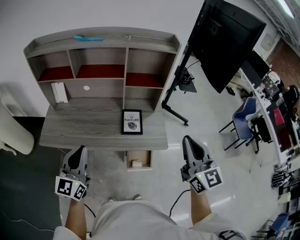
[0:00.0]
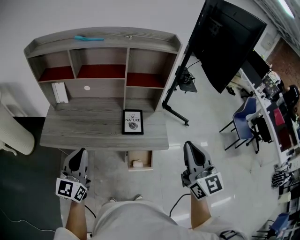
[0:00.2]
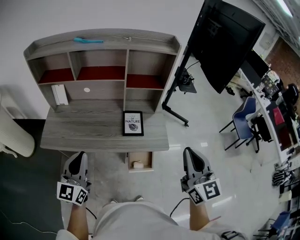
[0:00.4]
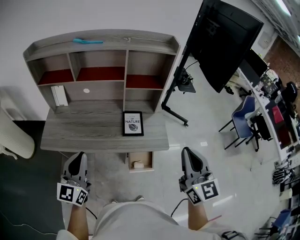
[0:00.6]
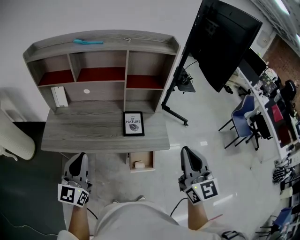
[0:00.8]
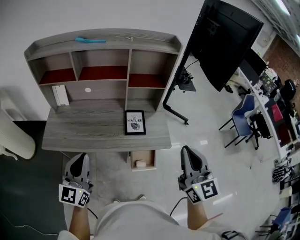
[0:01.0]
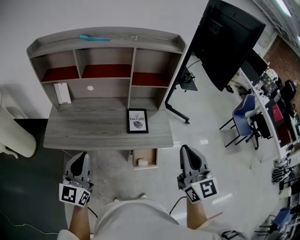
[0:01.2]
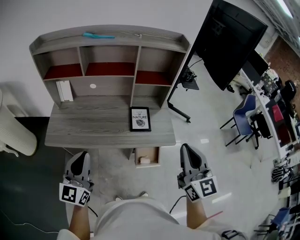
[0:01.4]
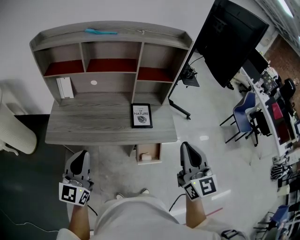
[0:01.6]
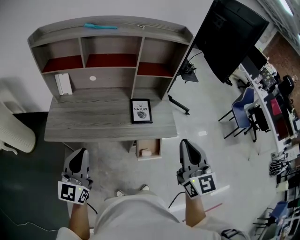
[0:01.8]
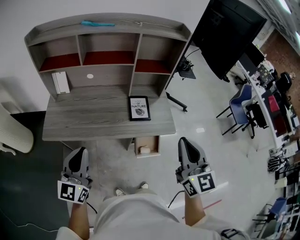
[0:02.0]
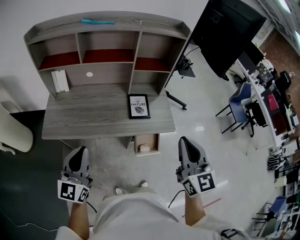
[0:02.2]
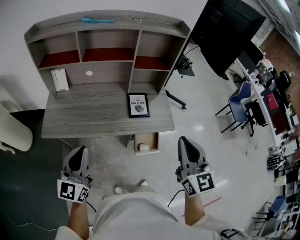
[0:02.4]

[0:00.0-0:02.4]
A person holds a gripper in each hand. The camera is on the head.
0:00.0 to 0:01.2: The left gripper ends up some 5 cm from where it was. The right gripper heads to the left, covering roughly 5 cm.
0:01.2 to 0:02.4: The left gripper changes place by about 5 cm; the right gripper heads to the left, covering approximately 5 cm.

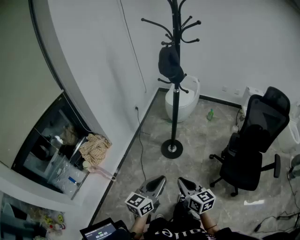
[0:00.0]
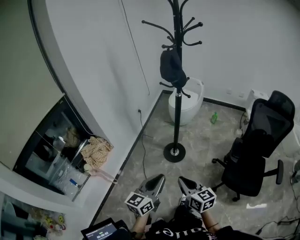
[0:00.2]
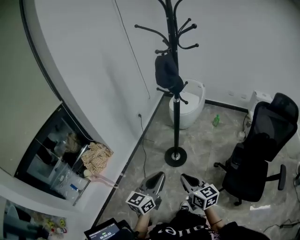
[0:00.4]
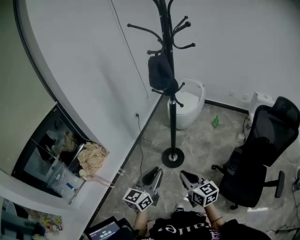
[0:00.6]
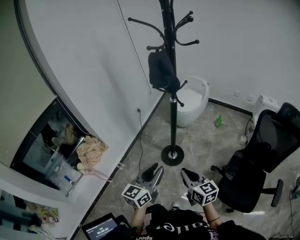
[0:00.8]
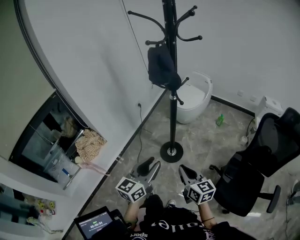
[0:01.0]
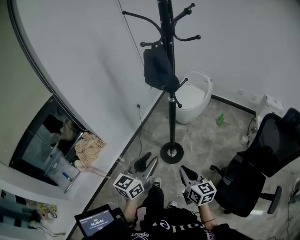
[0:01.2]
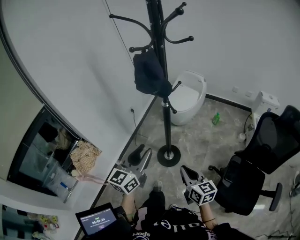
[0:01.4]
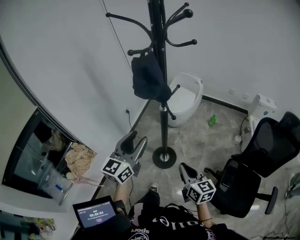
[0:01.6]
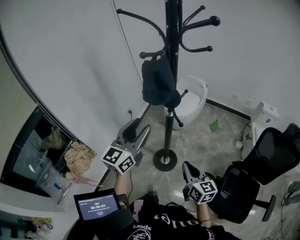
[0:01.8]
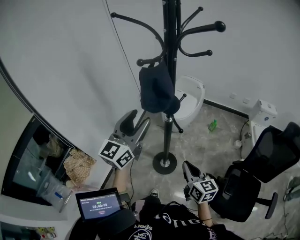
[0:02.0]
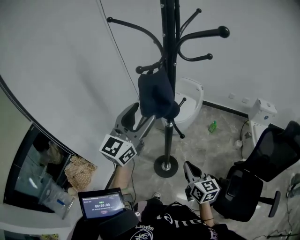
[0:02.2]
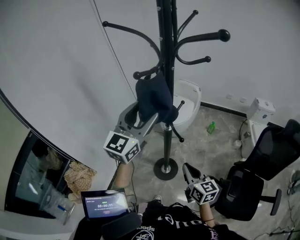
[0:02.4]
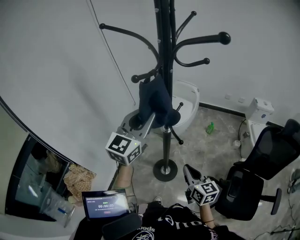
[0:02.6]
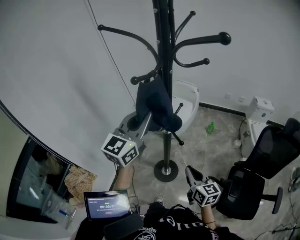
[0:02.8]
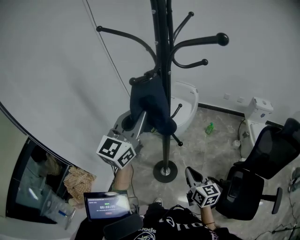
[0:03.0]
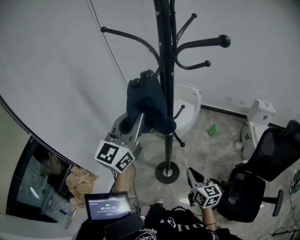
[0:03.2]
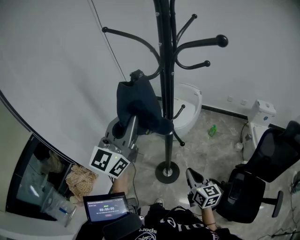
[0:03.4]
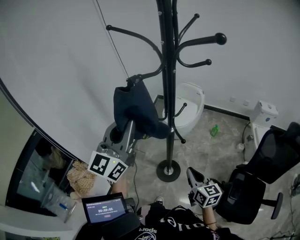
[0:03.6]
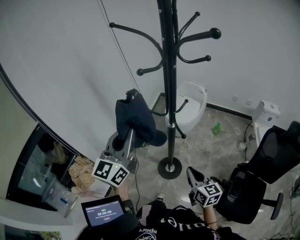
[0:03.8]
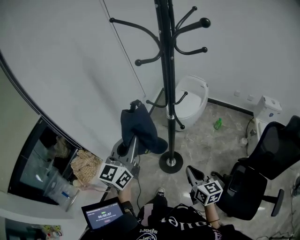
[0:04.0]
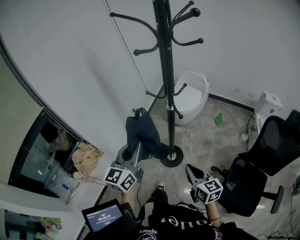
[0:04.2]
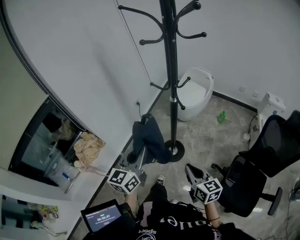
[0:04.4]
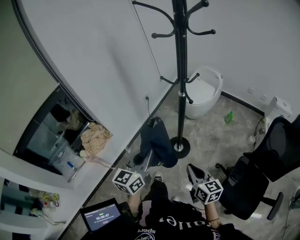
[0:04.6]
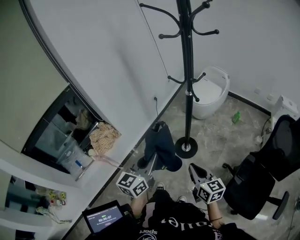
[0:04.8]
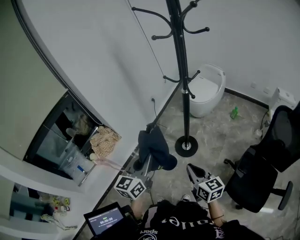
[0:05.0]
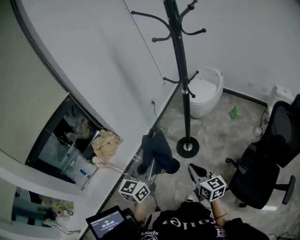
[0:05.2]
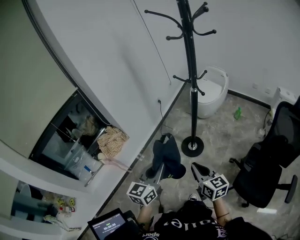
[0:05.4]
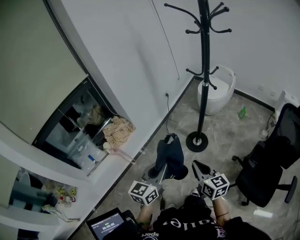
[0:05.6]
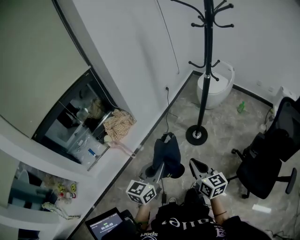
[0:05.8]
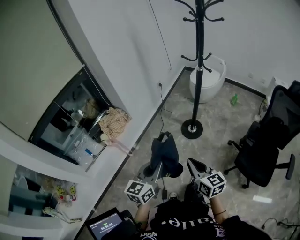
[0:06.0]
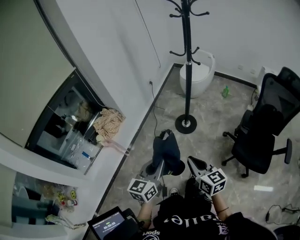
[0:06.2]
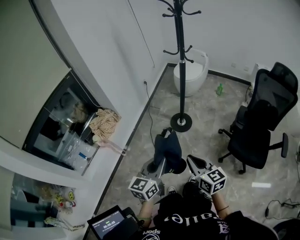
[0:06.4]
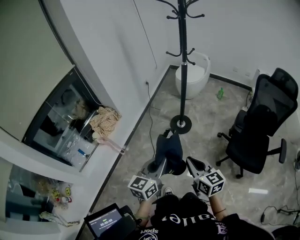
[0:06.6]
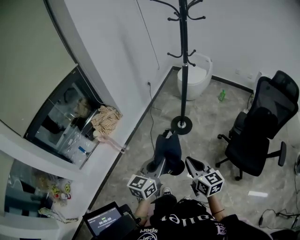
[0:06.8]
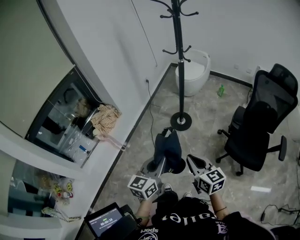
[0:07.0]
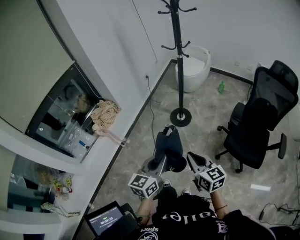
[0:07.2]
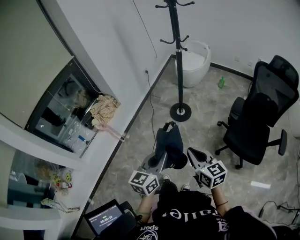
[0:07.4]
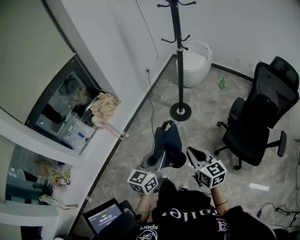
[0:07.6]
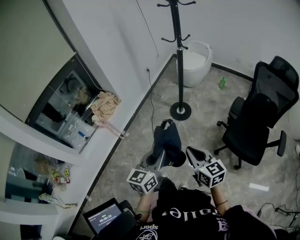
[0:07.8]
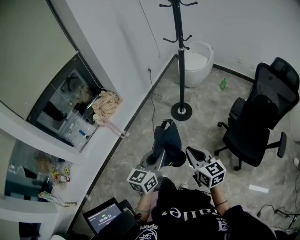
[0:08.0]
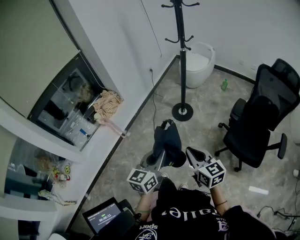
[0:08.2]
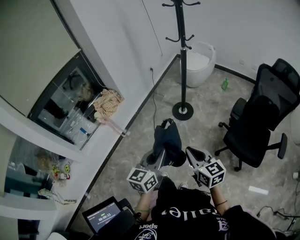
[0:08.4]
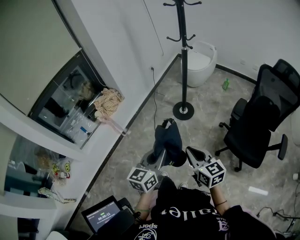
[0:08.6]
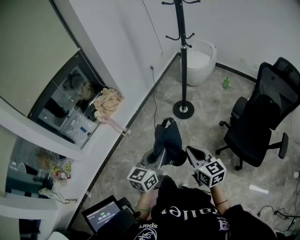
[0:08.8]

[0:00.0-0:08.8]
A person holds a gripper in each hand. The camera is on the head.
0:00.0 to 0:01.4: The left gripper heads forward, covering approximately 30 cm, and opens; the right gripper travels forward and to the right by roughly 30 cm.
0:01.4 to 0:03.0: The left gripper moves forward and upward, some 30 cm, changes its angle by approximately 20 degrees, and closes; the right gripper travels forward by some 15 cm.
0:03.0 to 0:04.4: The left gripper shifts approximately 30 cm backward and downward, and turns by roughly 30 degrees. Meanwhile the right gripper shifts some 15 cm backward.
0:04.4 to 0:05.8: The right gripper travels to the left and backward by roughly 30 cm, while the left gripper moves backward and to the left, about 30 cm.
0:05.8 to 0:07.4: Both grippers travel together backward and to the right, roughly 20 cm.
0:07.4 to 0:08.8: There are only small adjustments of the grippers.

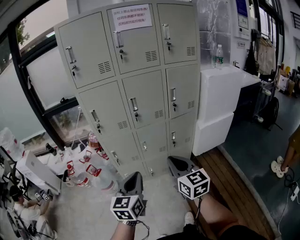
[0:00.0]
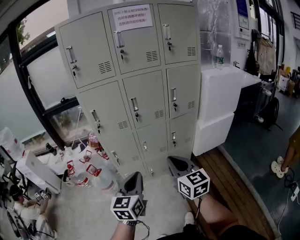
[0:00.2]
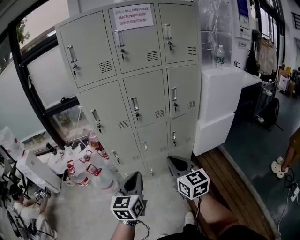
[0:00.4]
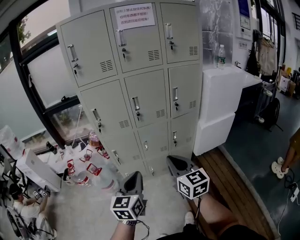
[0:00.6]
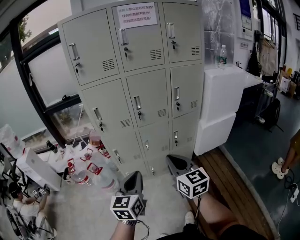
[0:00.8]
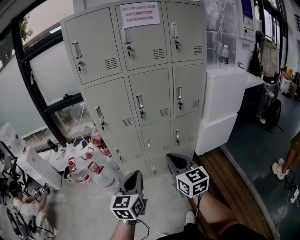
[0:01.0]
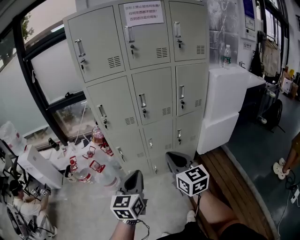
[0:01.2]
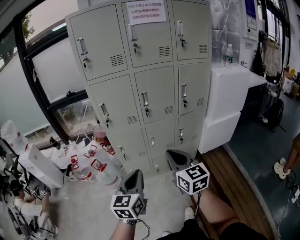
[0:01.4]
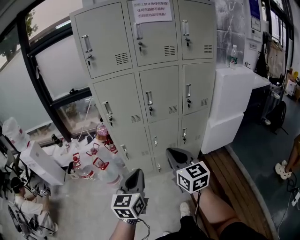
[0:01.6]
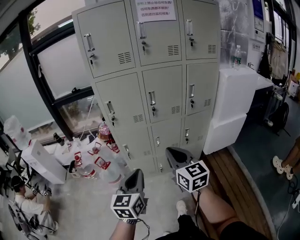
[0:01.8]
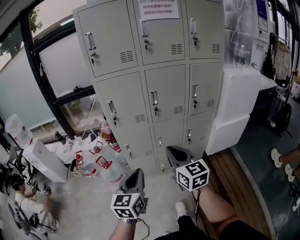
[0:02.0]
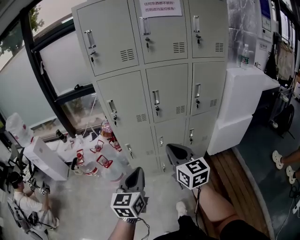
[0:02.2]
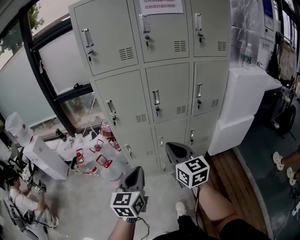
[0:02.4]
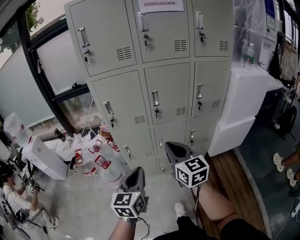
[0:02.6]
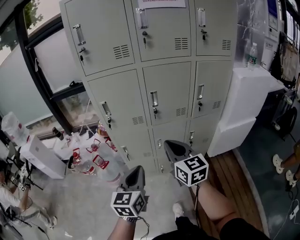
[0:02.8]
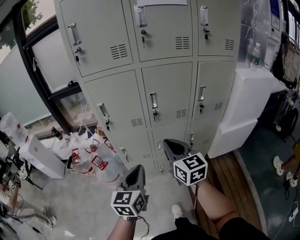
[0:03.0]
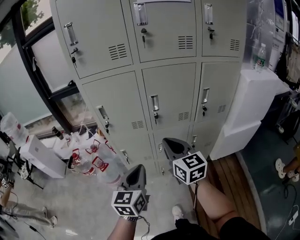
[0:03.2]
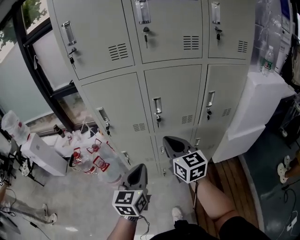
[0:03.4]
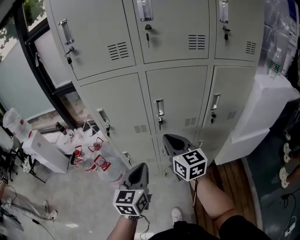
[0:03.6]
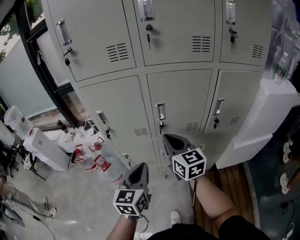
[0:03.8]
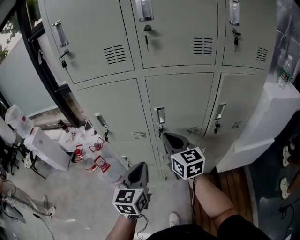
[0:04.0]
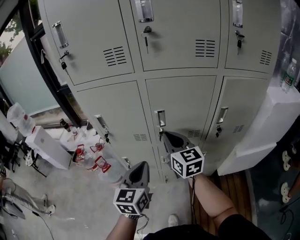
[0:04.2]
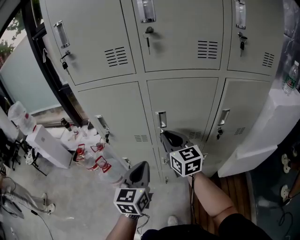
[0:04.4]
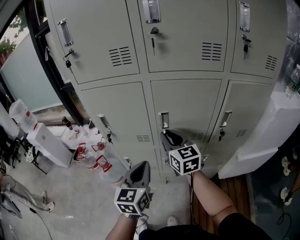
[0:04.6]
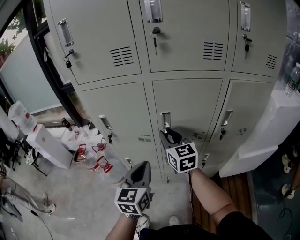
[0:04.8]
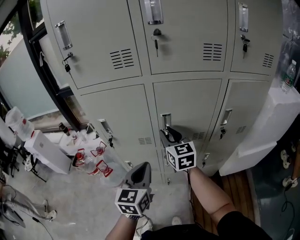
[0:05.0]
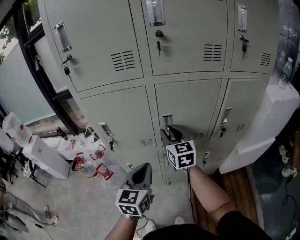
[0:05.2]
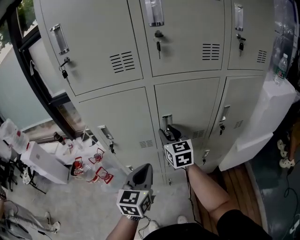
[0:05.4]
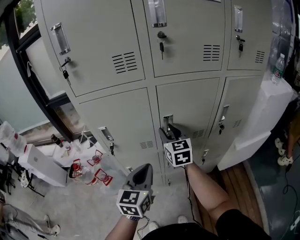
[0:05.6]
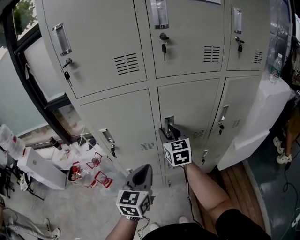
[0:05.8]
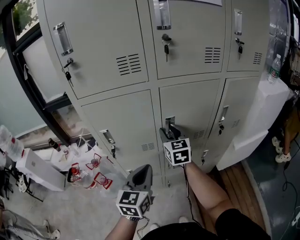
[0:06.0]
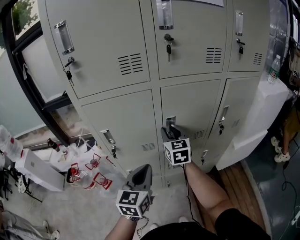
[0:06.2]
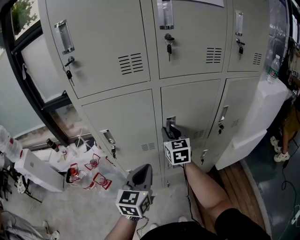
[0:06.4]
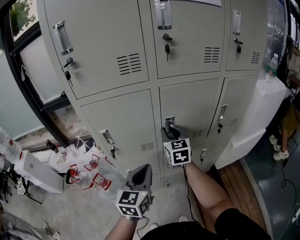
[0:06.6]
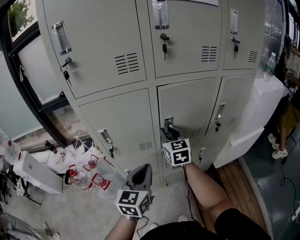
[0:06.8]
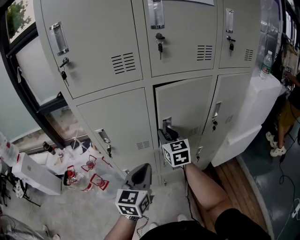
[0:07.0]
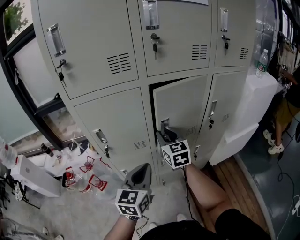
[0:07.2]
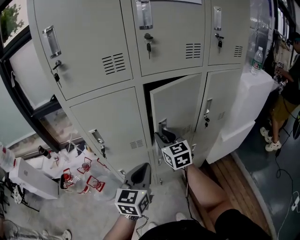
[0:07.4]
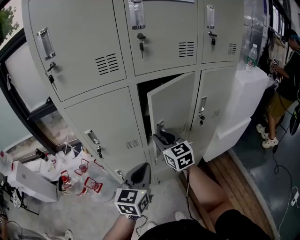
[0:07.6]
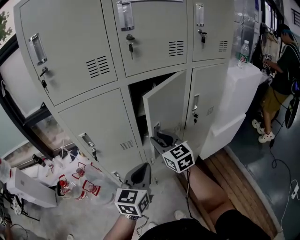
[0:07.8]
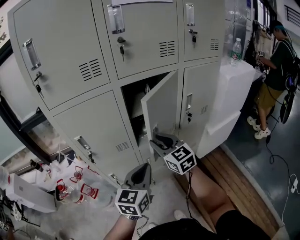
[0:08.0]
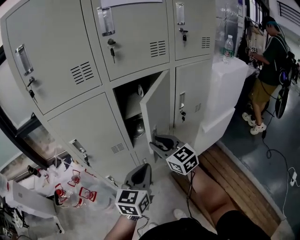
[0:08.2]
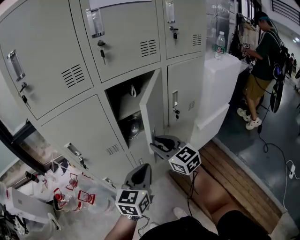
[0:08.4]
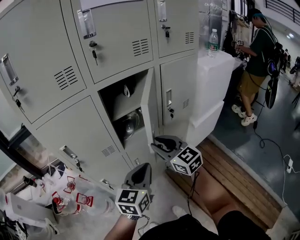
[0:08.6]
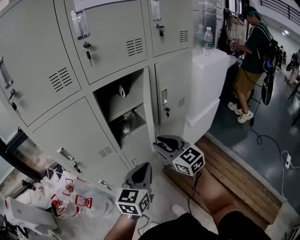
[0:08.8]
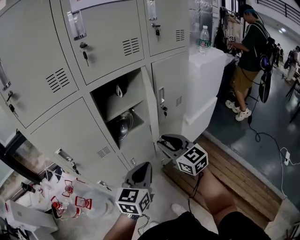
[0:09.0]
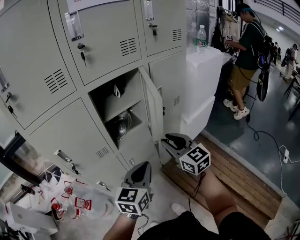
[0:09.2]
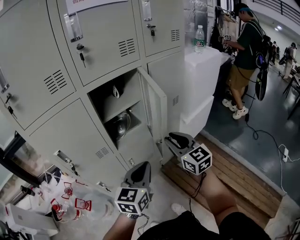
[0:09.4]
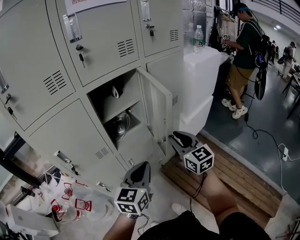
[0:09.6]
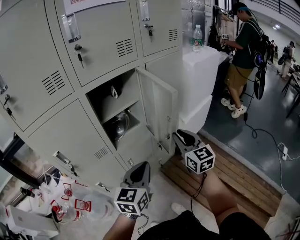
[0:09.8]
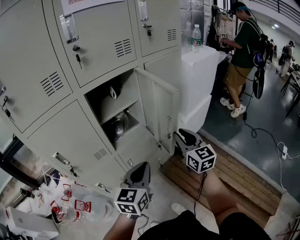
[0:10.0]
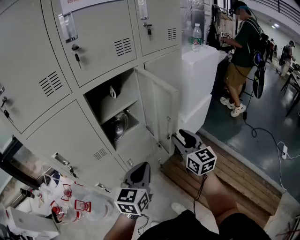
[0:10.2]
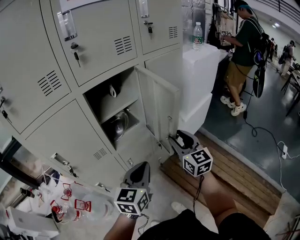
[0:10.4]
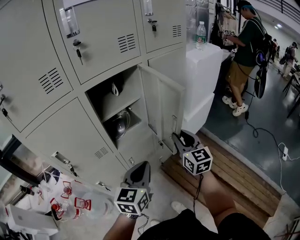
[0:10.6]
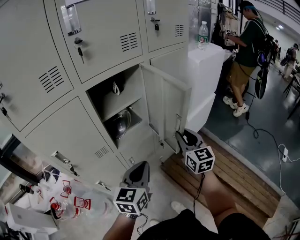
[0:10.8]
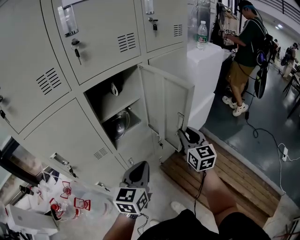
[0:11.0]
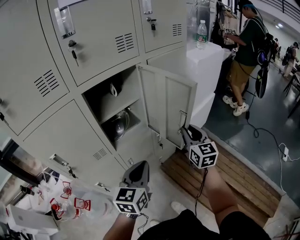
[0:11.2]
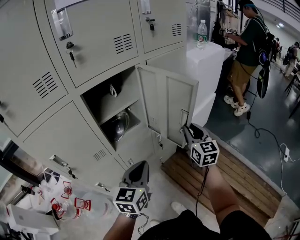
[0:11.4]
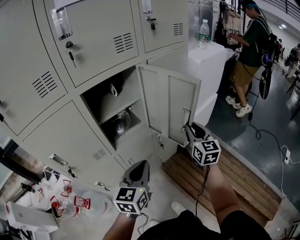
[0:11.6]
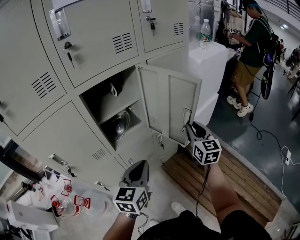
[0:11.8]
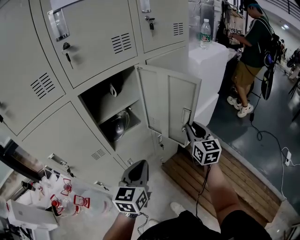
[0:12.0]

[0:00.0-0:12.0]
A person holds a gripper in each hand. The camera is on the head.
0:00.0 to 0:01.6: Both grippers move to the left, about 5 cm.
0:01.6 to 0:03.0: Both grippers move forward, approximately 15 cm.
0:03.0 to 0:04.4: The grippers both shift forward by roughly 20 cm.
0:04.4 to 0:06.0: The right gripper travels forward by some 5 cm, changes its angle by about 20 degrees, and opens; the left gripper heads to the left, covering roughly 5 cm.
0:06.0 to 0:07.6: The right gripper goes some 5 cm backward, while the left gripper changes place by approximately 5 cm.
0:07.6 to 0:09.0: The right gripper moves to the right and backward, about 15 cm. The left gripper goes roughly 10 cm to the right.
0:09.0 to 0:10.4: The right gripper is displaced to the right by roughly 10 cm, and swivels approximately 20 degrees.
0:10.4 to 0:12.0: The right gripper heads forward and to the right, covering about 10 cm, and closes.
